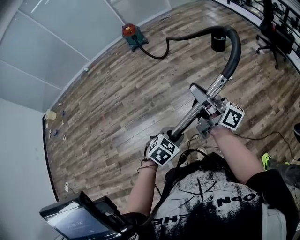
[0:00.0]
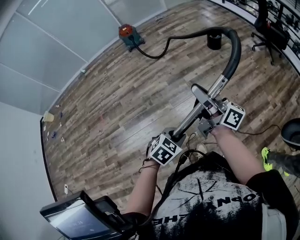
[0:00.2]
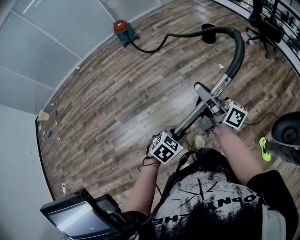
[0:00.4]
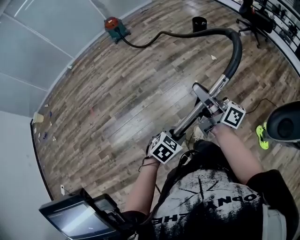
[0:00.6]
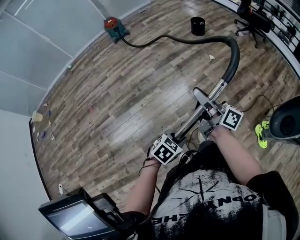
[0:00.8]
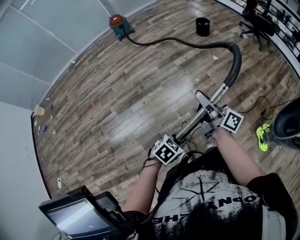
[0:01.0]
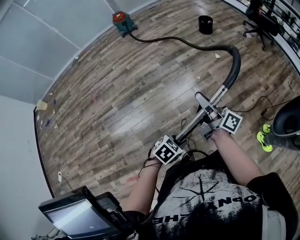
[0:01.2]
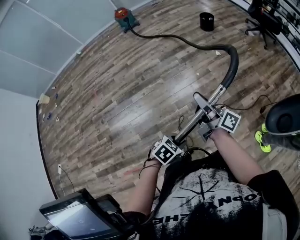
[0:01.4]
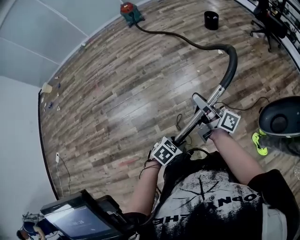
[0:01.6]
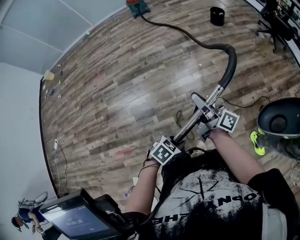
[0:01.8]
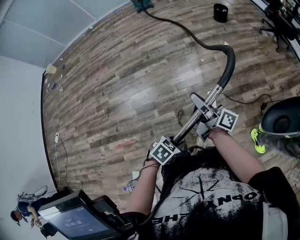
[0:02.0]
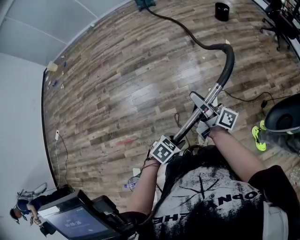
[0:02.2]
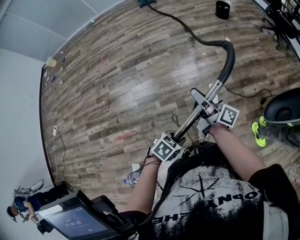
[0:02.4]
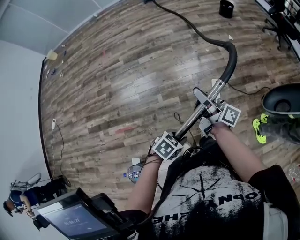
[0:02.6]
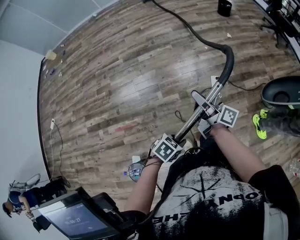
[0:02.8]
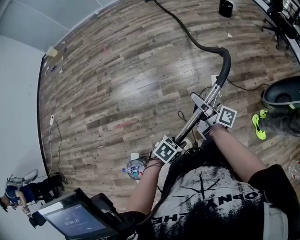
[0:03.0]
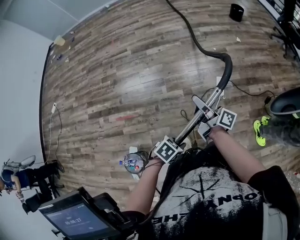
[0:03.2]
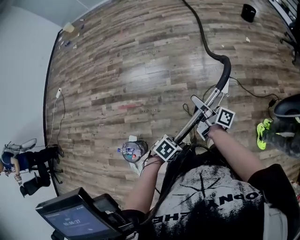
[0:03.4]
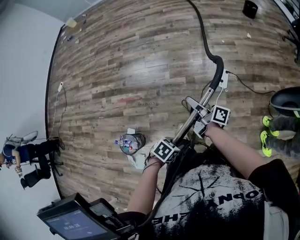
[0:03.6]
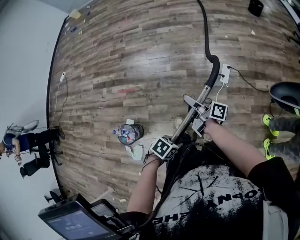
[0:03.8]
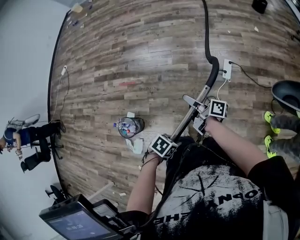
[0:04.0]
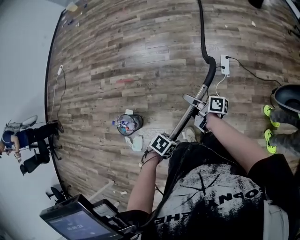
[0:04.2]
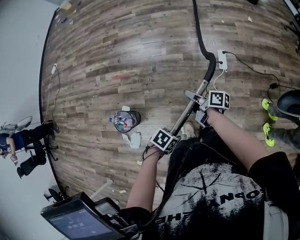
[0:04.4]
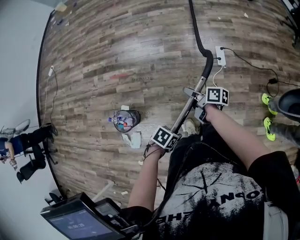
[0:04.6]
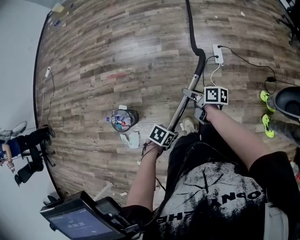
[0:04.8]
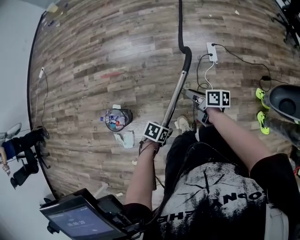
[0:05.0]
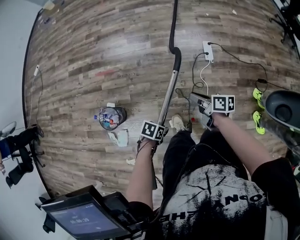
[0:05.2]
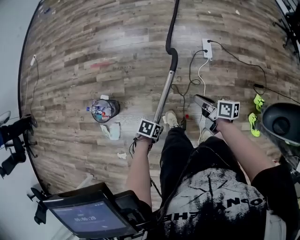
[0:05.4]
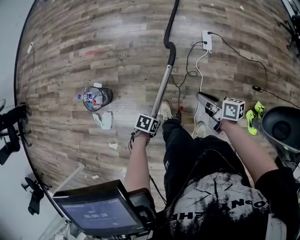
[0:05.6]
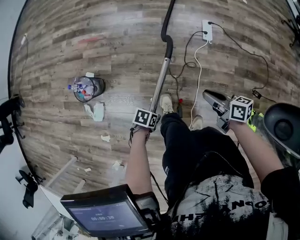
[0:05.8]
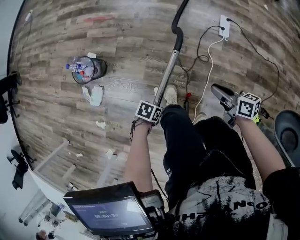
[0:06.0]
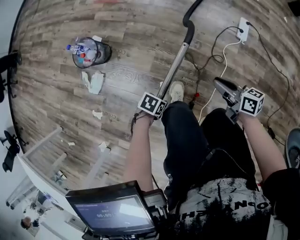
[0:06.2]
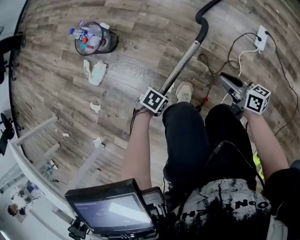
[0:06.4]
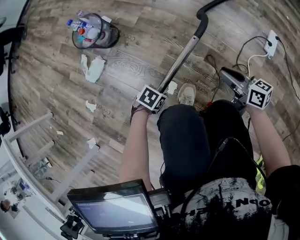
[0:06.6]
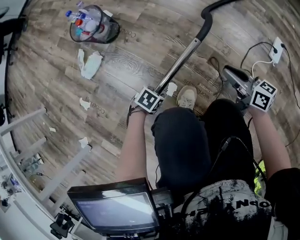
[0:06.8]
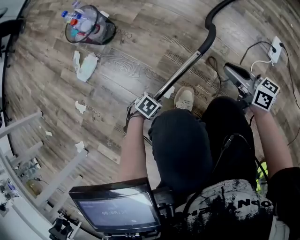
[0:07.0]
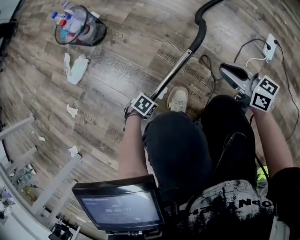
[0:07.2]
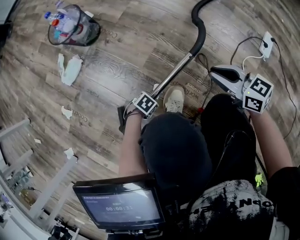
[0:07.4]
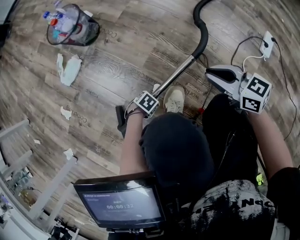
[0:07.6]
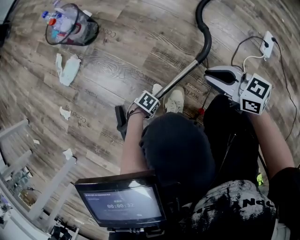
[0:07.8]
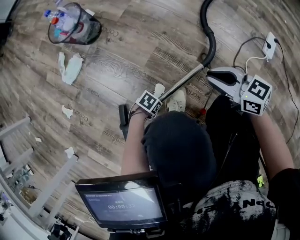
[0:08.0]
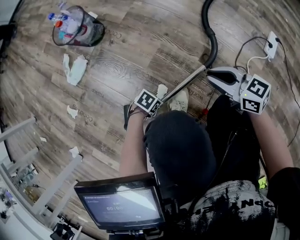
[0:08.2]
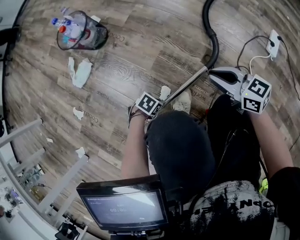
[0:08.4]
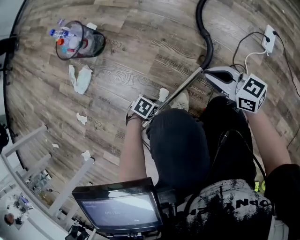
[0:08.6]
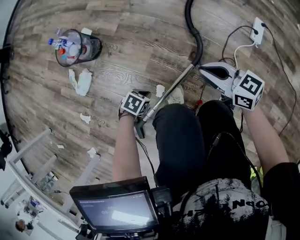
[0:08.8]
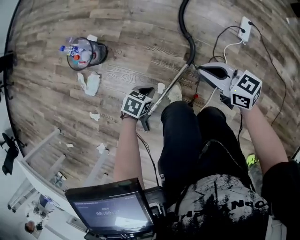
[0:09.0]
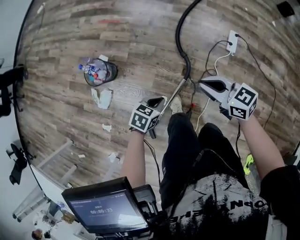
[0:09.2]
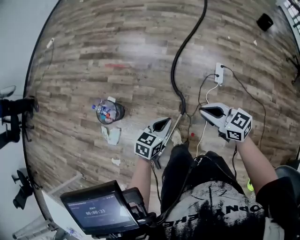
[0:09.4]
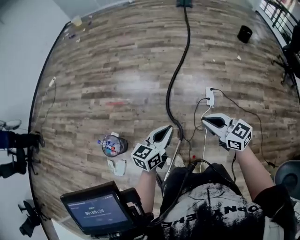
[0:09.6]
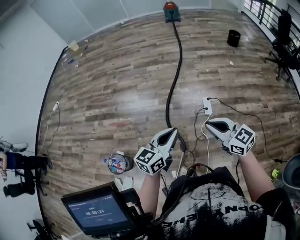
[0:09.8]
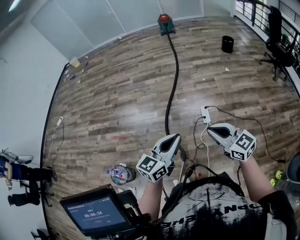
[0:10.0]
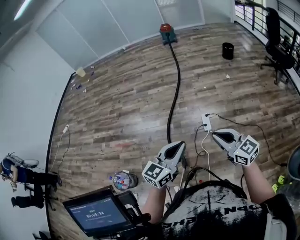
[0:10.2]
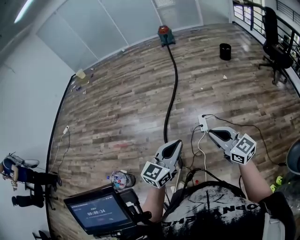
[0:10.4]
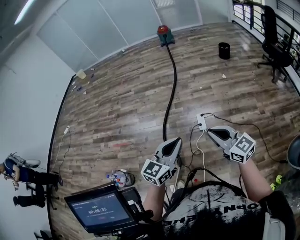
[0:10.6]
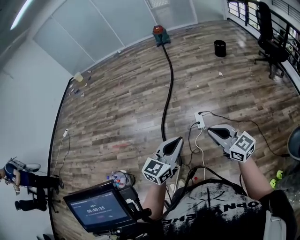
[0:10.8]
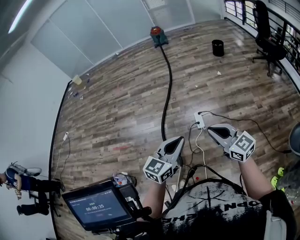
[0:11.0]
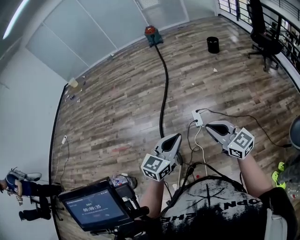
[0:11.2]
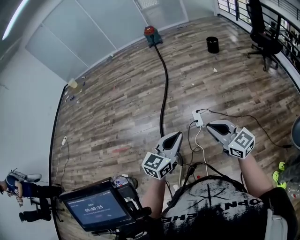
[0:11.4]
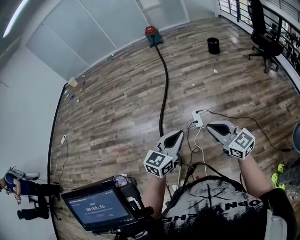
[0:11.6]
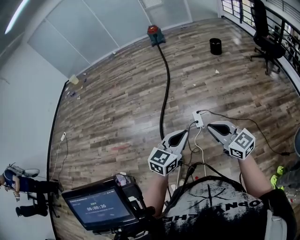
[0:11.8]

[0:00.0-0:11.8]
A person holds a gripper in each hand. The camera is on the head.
0:00.0 to 0:01.4: The right gripper goes roughly 30 cm backward, downward and to the right; the left gripper shifts approximately 30 cm backward and to the right.
0:01.4 to 0:03.0: The two grippers go roughly 35 cm backward. The right gripper turns by some 20 degrees. Meanwhile the left gripper turns by roughly 20 degrees.
0:03.0 to 0:04.4: The right gripper shifts by approximately 25 cm, and turns by some 40 degrees, while the left gripper shifts by approximately 25 cm, and changes its angle by approximately 30 degrees.
0:04.4 to 0:06.0: The left gripper heads downward, covering roughly 30 cm, and changes its angle by approximately 30 degrees, while the right gripper ends up approximately 30 cm from where it was, and swivels approximately 40 degrees.
0:06.0 to 0:07.4: The right gripper is displaced downward by some 25 cm, and rotates around the line of its fingers by some 40 degrees, counterclockwise from behind. The left gripper shifts roughly 40 cm downward.
0:07.4 to 0:08.8: The left gripper goes roughly 20 cm upward, and closes. The right gripper goes about 10 cm upward.
0:08.8 to 0:10.4: The grippers both shift upward by roughly 70 cm. The right gripper rotates some 50 degrees. Meanwhile the left gripper tips its fingers upward by some 60 degrees.
0:10.4 to 0:11.8: The left gripper moves to the right, roughly 5 cm.

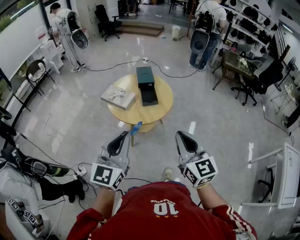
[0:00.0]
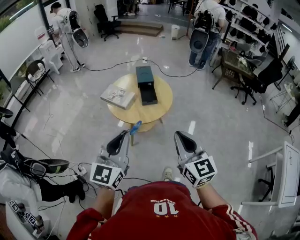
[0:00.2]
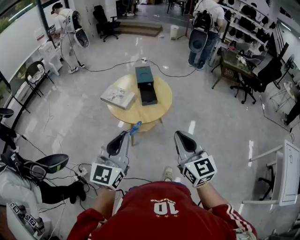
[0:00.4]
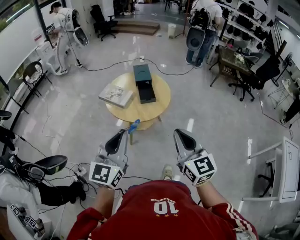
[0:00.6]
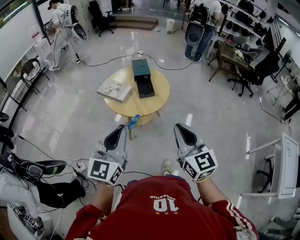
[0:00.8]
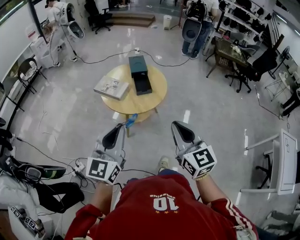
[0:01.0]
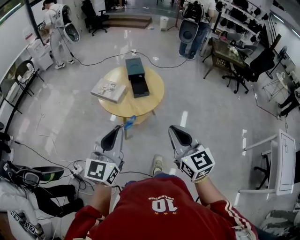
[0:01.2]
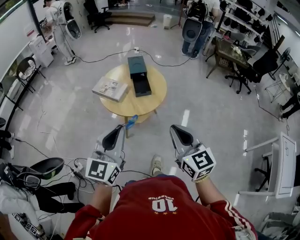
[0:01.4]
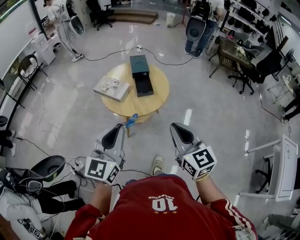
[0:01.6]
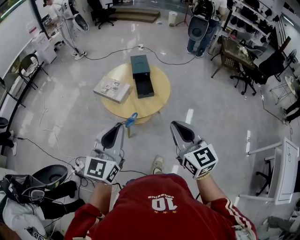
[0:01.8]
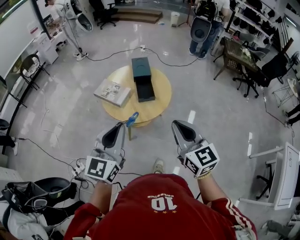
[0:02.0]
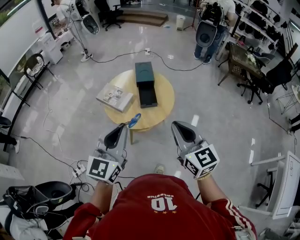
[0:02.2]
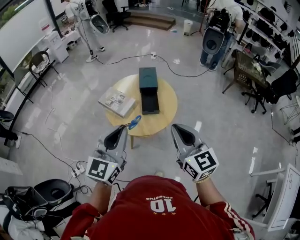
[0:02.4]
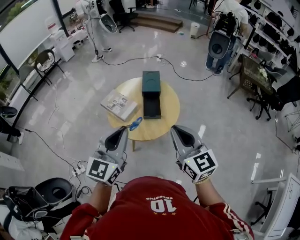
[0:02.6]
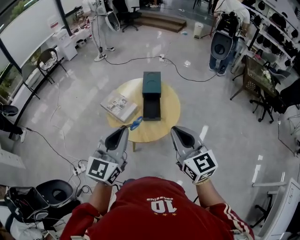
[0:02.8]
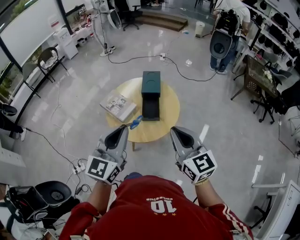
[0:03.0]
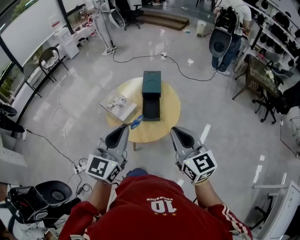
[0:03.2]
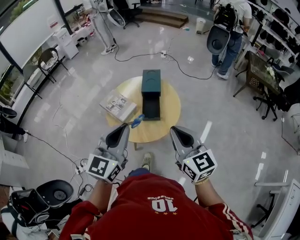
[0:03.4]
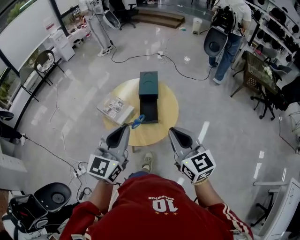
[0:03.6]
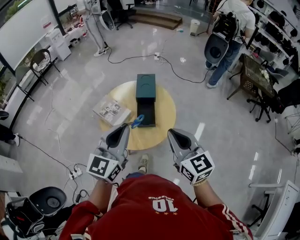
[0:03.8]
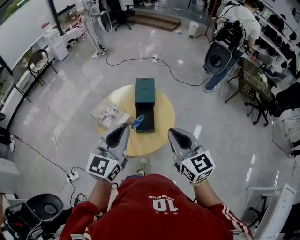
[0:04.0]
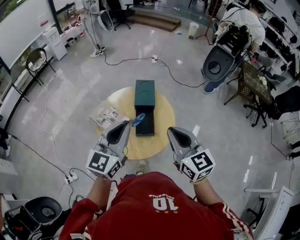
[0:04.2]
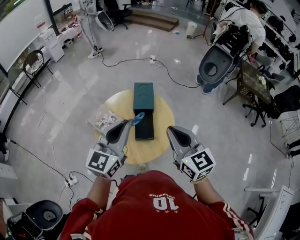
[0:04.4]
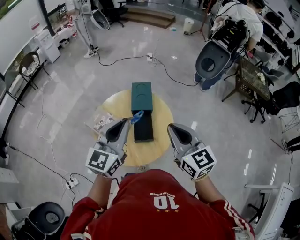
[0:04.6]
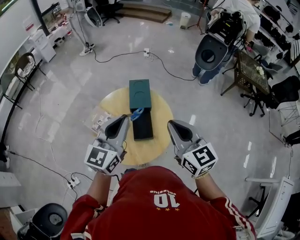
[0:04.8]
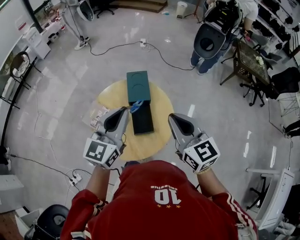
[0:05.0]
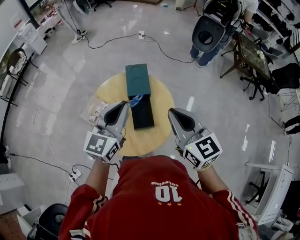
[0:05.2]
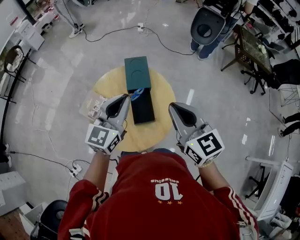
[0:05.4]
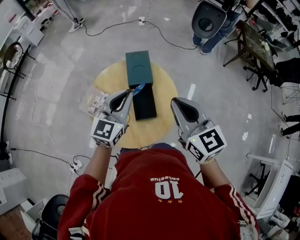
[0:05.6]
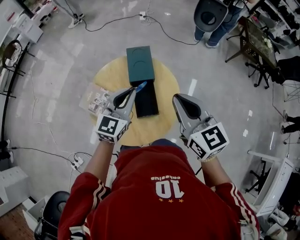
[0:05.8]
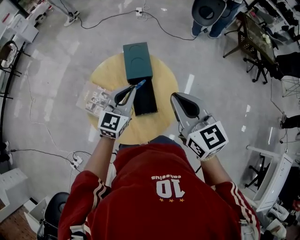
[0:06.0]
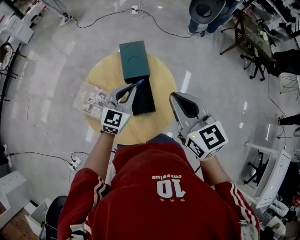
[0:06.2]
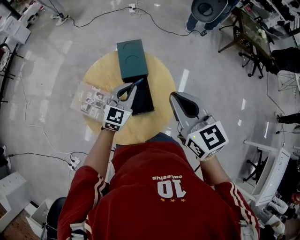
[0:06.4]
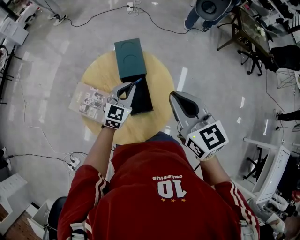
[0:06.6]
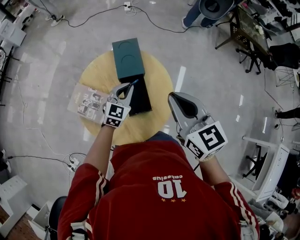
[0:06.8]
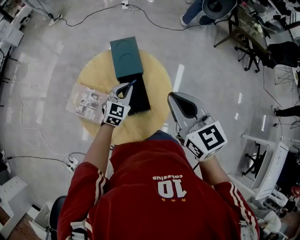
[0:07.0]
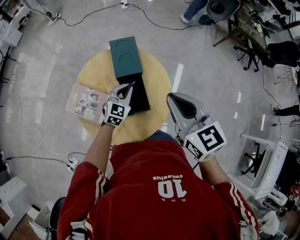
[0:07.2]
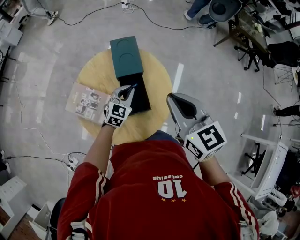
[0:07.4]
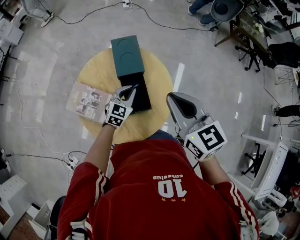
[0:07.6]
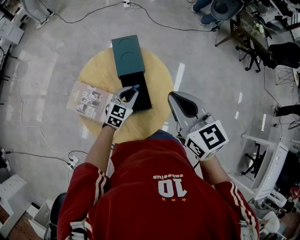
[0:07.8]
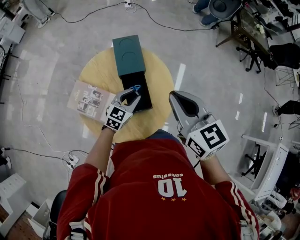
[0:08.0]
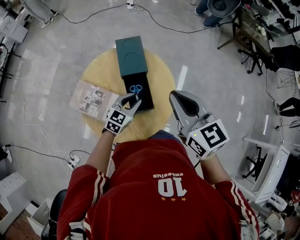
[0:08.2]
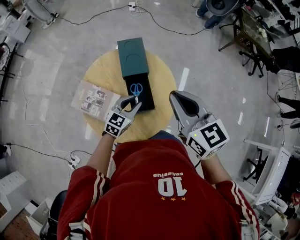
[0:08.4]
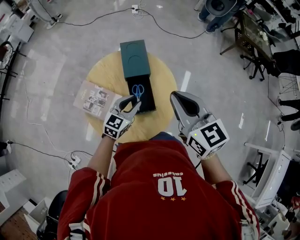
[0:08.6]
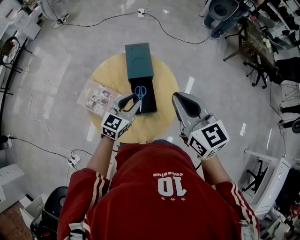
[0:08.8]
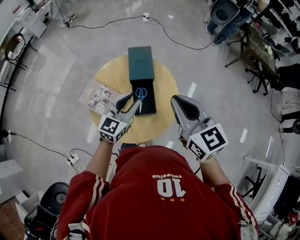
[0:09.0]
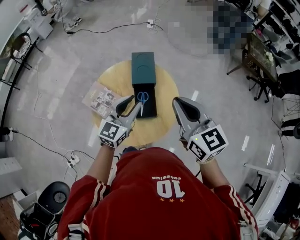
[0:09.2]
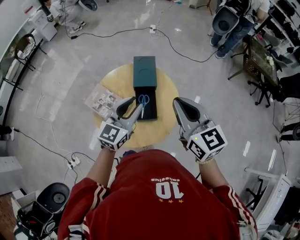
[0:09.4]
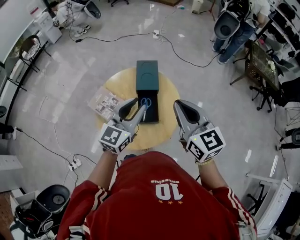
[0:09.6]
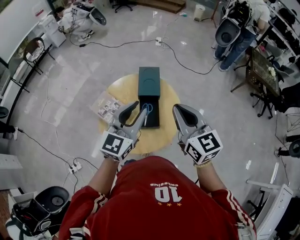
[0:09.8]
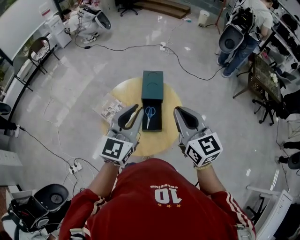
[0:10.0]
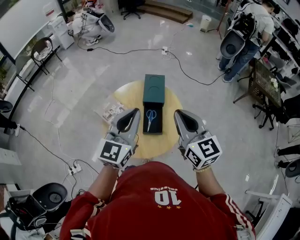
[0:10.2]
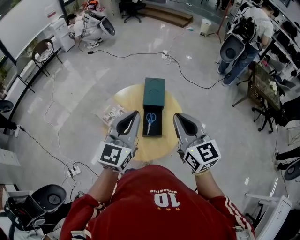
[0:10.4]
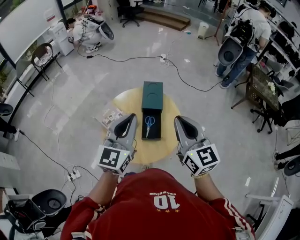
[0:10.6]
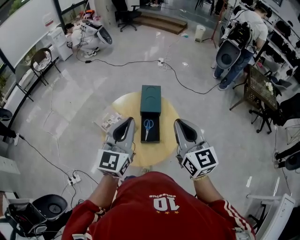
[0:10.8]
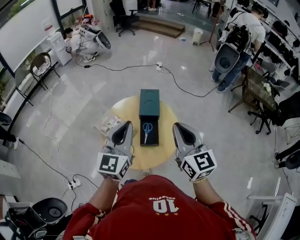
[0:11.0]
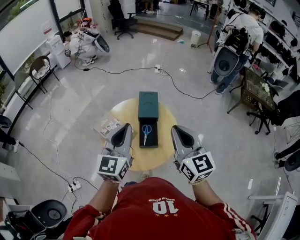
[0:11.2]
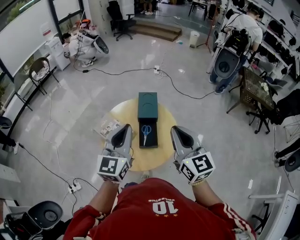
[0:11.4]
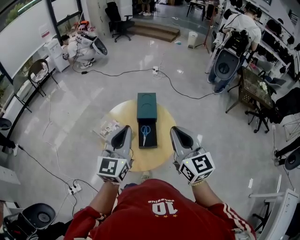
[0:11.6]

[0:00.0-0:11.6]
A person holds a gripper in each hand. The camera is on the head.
0:00.0 to 0:01.4: There are only small adjustments of the grippers.
0:01.4 to 0:02.8: The two grippers go some 20 cm forward.
0:02.8 to 0:04.4: Both grippers travel together forward, approximately 15 cm.
0:04.4 to 0:05.8: The right gripper is displaced forward by some 10 cm, while the left gripper travels downward and forward by some 20 cm.
0:05.8 to 0:07.2: The left gripper goes some 20 cm downward.
0:07.2 to 0:08.8: The left gripper heads upward and backward, covering some 10 cm, and opens its fingers.
0:08.8 to 0:10.2: The left gripper shifts approximately 25 cm upward, rotates roughly 30 degrees, and closes. Meanwhile the right gripper travels upward by some 5 cm.
0:10.2 to 0:11.6: The grippers move only a little.
